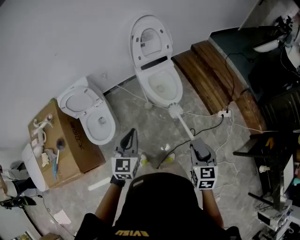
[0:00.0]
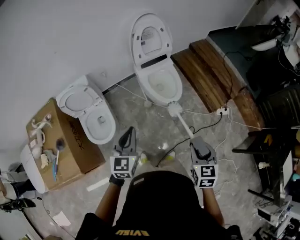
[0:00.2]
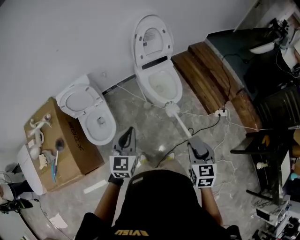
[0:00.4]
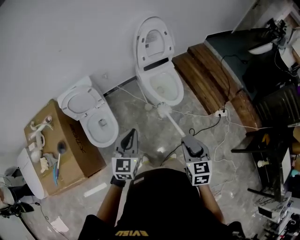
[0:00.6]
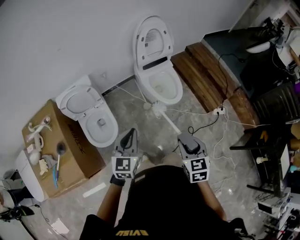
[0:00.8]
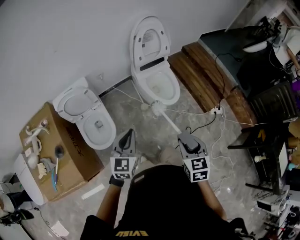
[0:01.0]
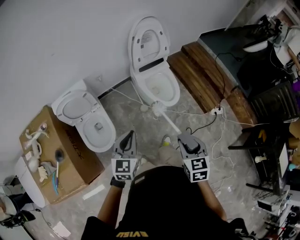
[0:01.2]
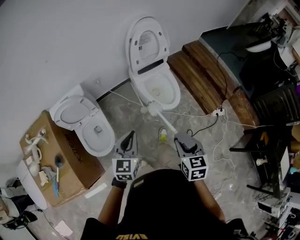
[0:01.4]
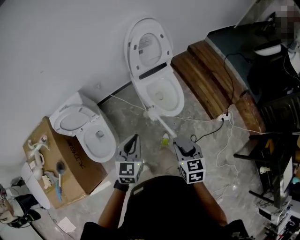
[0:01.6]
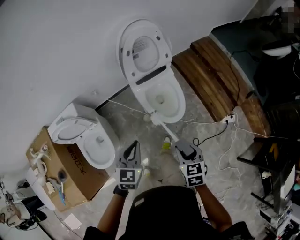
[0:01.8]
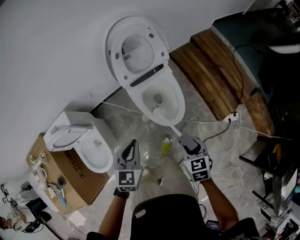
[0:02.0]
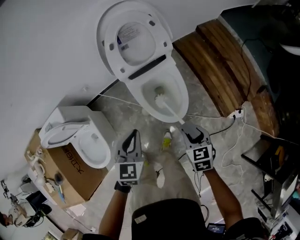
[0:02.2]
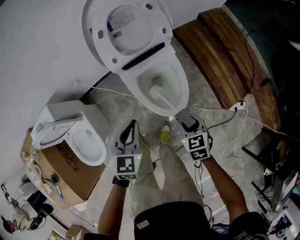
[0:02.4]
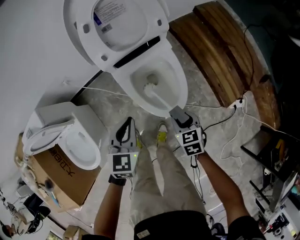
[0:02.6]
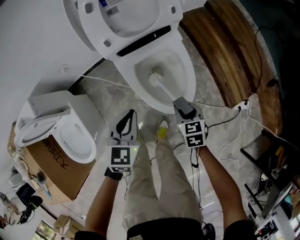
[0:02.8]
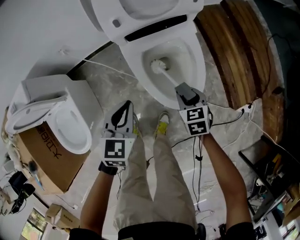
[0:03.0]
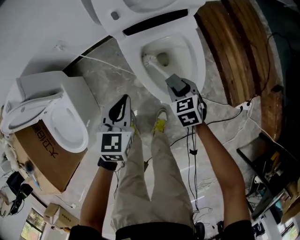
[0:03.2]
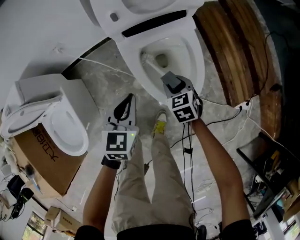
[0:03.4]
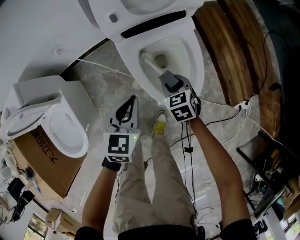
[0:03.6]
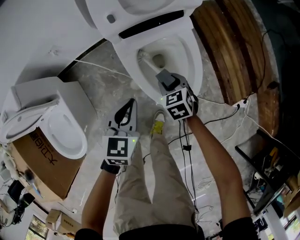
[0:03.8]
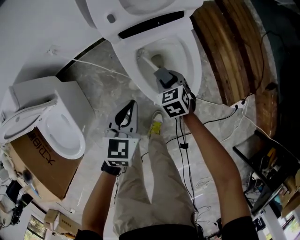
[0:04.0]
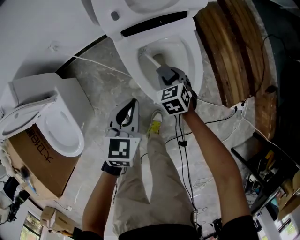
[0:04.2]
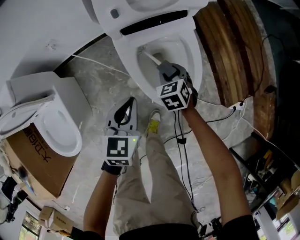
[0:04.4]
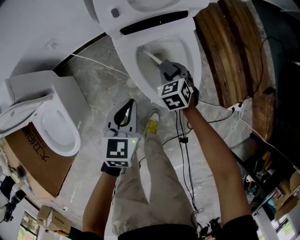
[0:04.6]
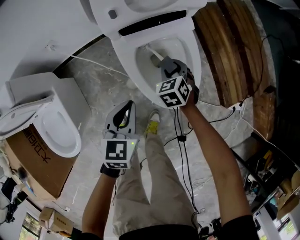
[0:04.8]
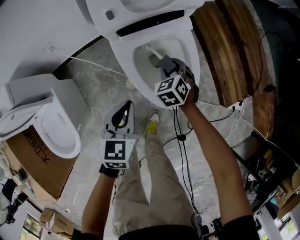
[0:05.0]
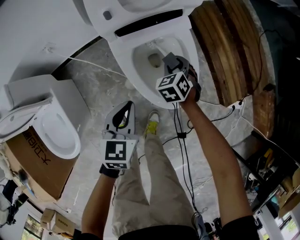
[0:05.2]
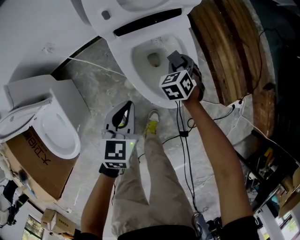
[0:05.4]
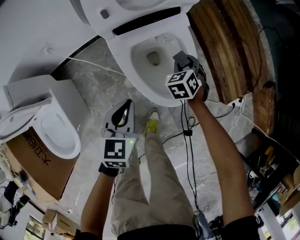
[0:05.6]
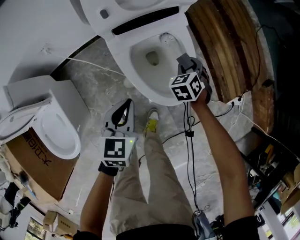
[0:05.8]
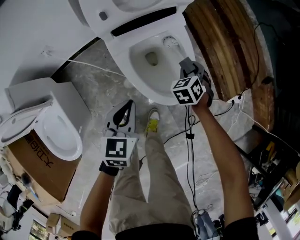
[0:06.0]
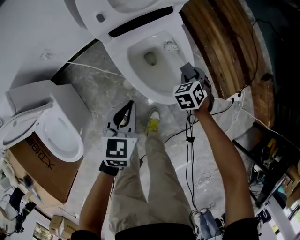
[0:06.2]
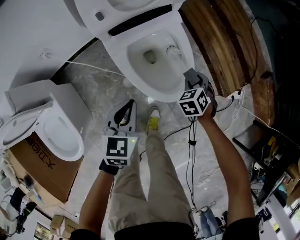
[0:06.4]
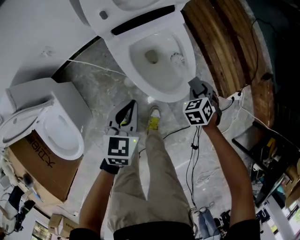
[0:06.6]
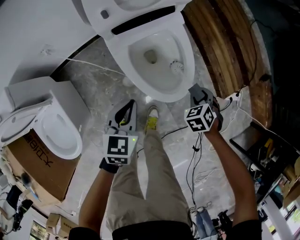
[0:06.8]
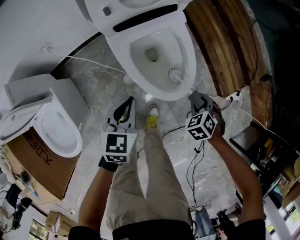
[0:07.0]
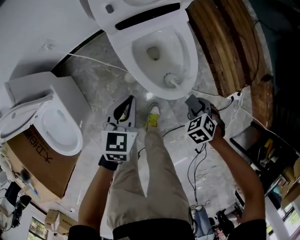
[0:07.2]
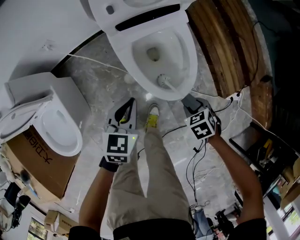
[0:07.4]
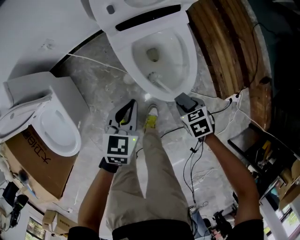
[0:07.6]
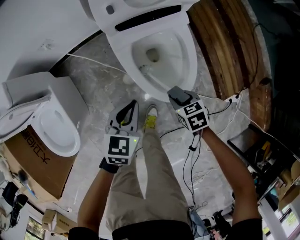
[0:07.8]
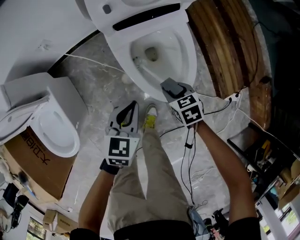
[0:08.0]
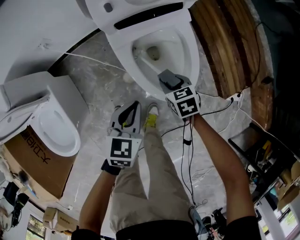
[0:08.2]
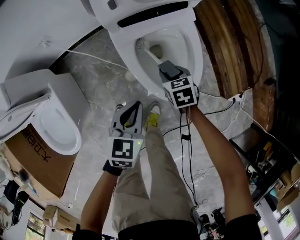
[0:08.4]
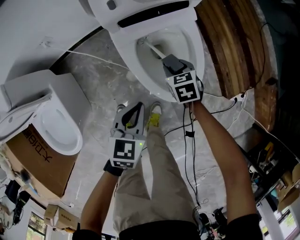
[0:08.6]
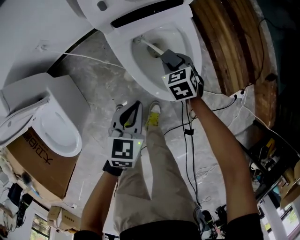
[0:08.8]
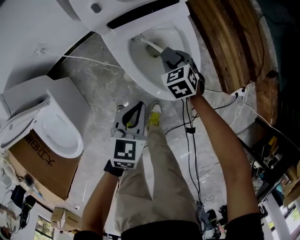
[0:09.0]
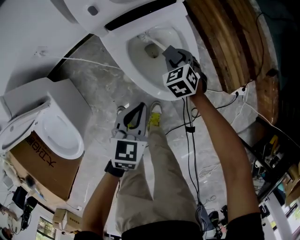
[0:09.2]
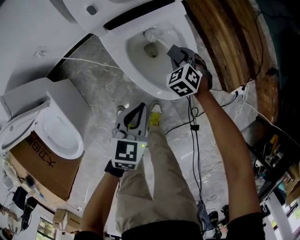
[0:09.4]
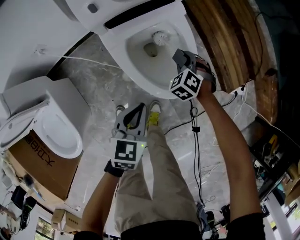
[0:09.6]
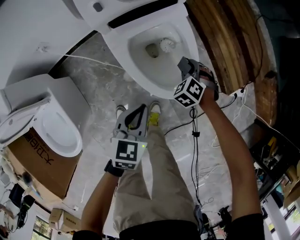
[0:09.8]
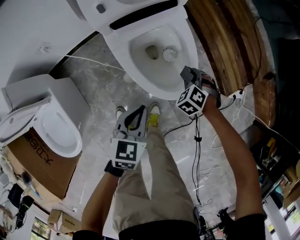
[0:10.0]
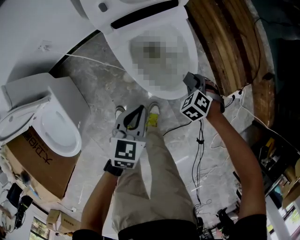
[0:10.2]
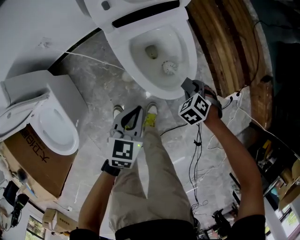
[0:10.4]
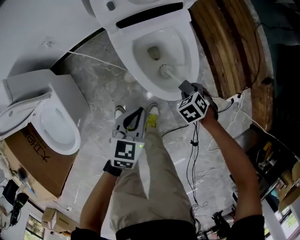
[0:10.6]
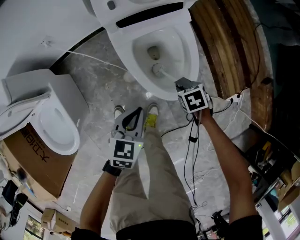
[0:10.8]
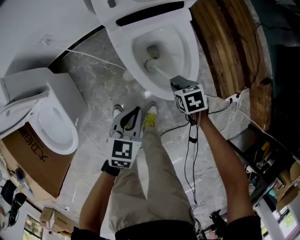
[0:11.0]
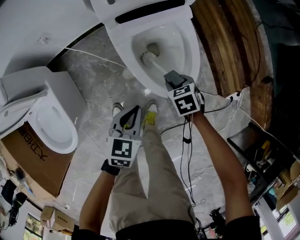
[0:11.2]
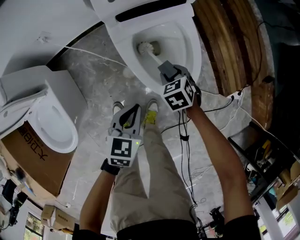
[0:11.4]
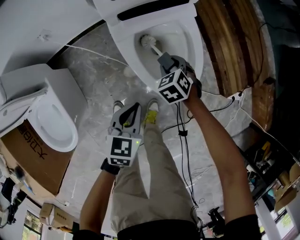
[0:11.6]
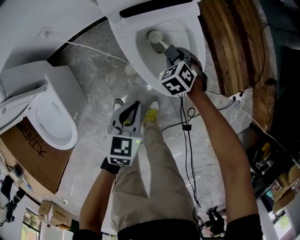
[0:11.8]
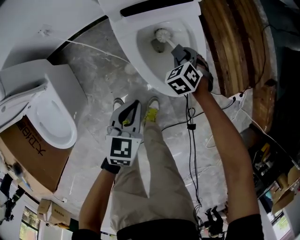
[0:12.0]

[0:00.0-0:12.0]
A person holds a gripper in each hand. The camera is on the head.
0.0 to 1.6 s: The right gripper travels forward and to the left by approximately 20 cm. Meanwhile the left gripper travels forward and downward by approximately 15 cm.
1.6 to 3.0 s: Both grippers travel together downward and forward, roughly 50 cm. The right gripper changes its angle by some 20 degrees.
3.0 to 4.4 s: The right gripper moves forward and to the left, roughly 10 cm.
4.4 to 6.0 s: The right gripper travels to the right by about 10 cm, and turns by about 20 degrees.
6.0 to 7.6 s: The right gripper moves some 15 cm, and turns by roughly 30 degrees.
7.6 to 9.0 s: The right gripper shifts by approximately 20 cm, and rotates some 20 degrees.
9.0 to 10.4 s: The right gripper ends up roughly 15 cm from where it was, and turns by some 30 degrees.
10.4 to 12.0 s: The right gripper ends up roughly 15 cm from where it was.

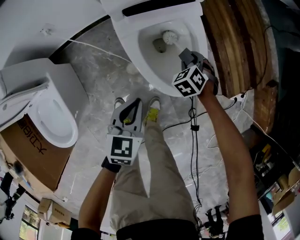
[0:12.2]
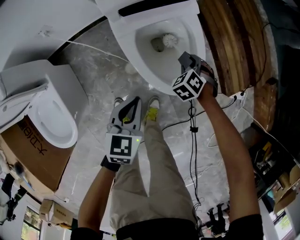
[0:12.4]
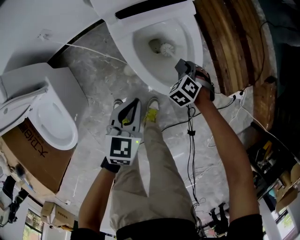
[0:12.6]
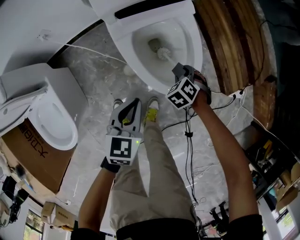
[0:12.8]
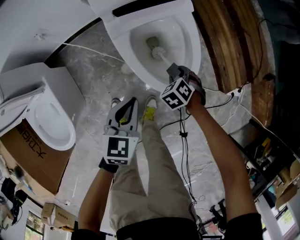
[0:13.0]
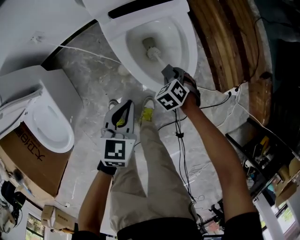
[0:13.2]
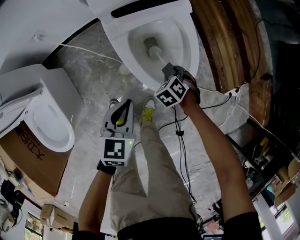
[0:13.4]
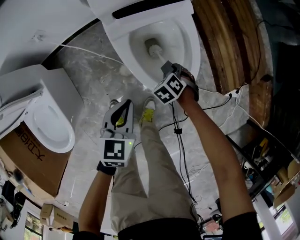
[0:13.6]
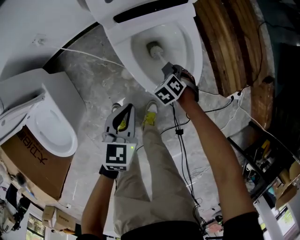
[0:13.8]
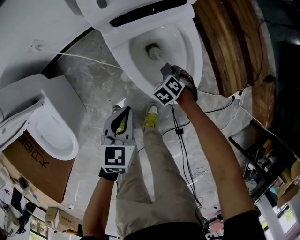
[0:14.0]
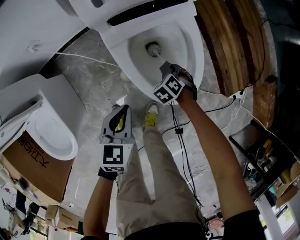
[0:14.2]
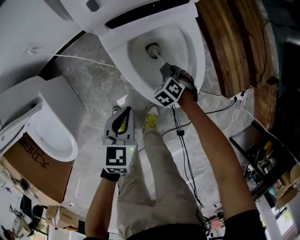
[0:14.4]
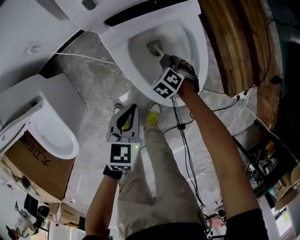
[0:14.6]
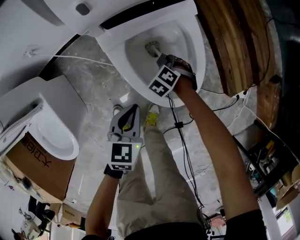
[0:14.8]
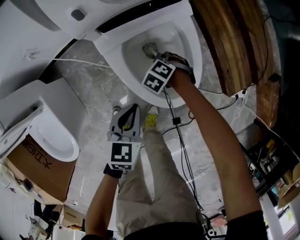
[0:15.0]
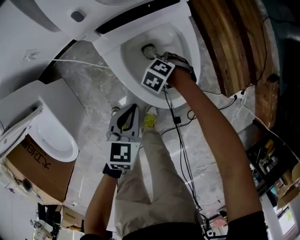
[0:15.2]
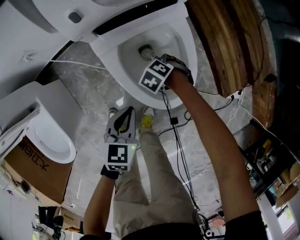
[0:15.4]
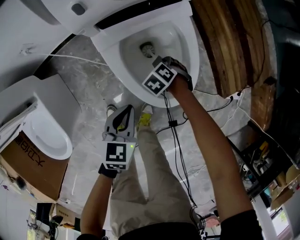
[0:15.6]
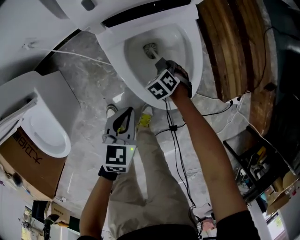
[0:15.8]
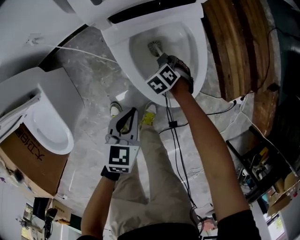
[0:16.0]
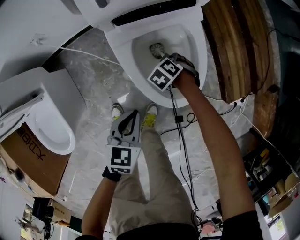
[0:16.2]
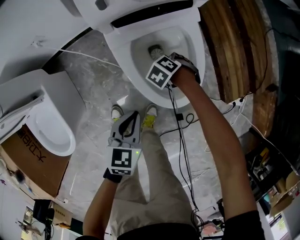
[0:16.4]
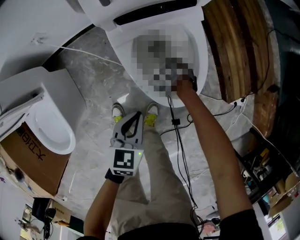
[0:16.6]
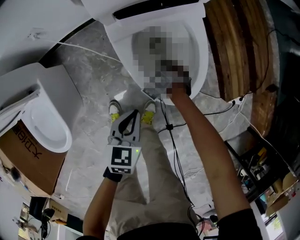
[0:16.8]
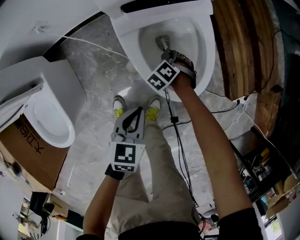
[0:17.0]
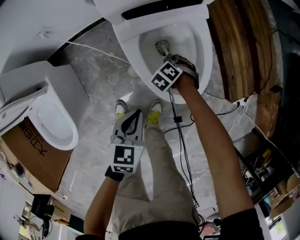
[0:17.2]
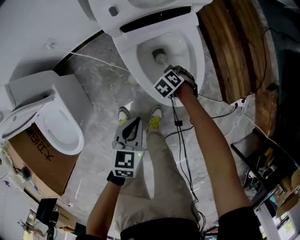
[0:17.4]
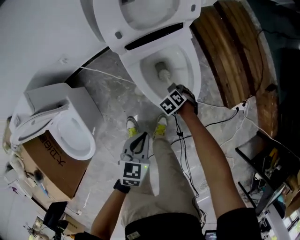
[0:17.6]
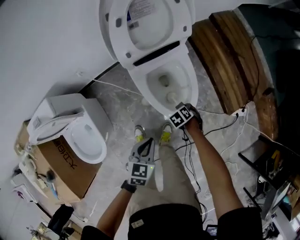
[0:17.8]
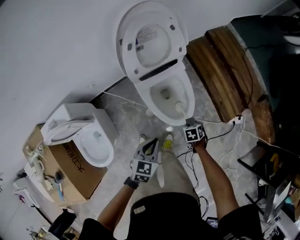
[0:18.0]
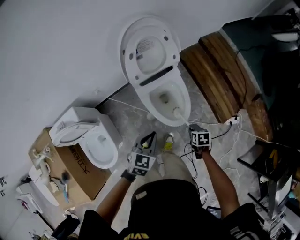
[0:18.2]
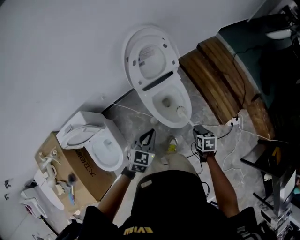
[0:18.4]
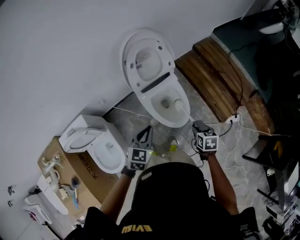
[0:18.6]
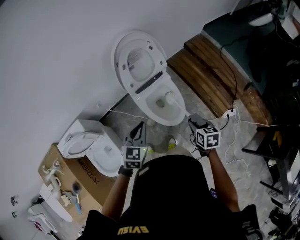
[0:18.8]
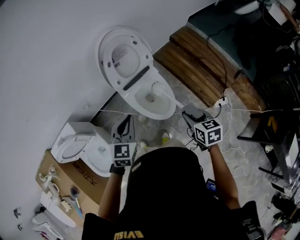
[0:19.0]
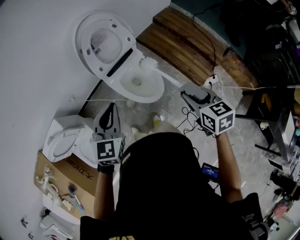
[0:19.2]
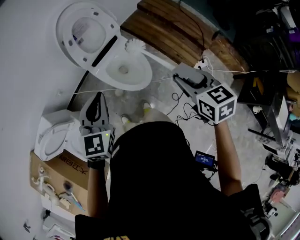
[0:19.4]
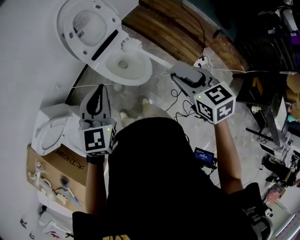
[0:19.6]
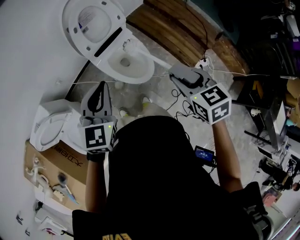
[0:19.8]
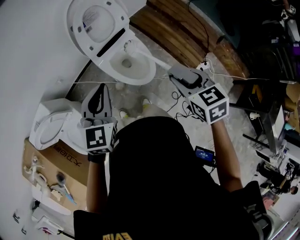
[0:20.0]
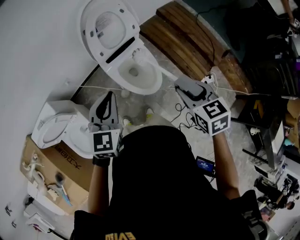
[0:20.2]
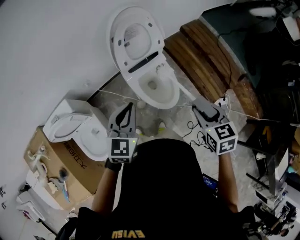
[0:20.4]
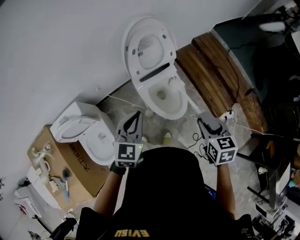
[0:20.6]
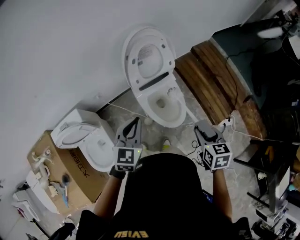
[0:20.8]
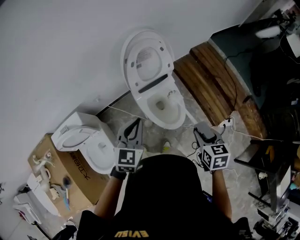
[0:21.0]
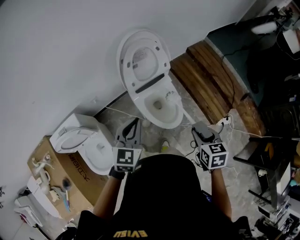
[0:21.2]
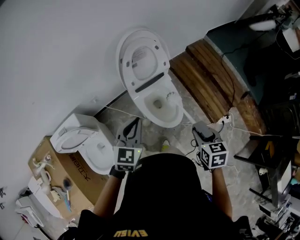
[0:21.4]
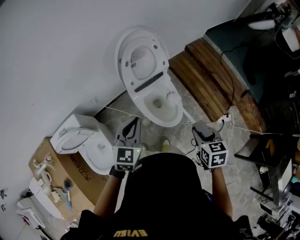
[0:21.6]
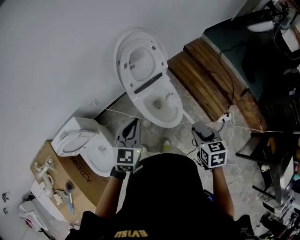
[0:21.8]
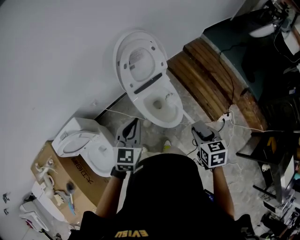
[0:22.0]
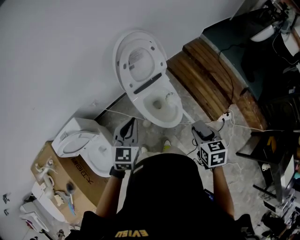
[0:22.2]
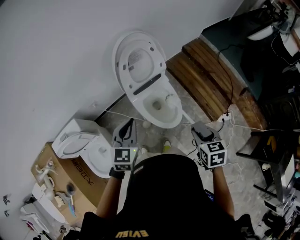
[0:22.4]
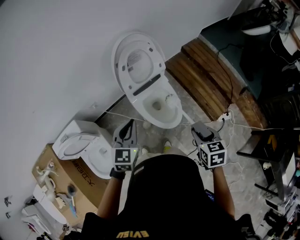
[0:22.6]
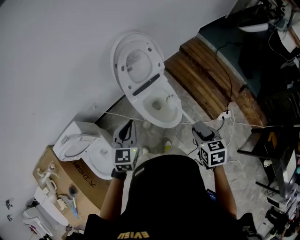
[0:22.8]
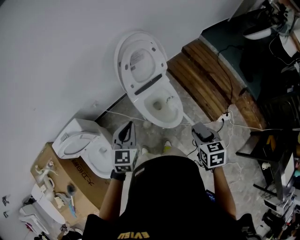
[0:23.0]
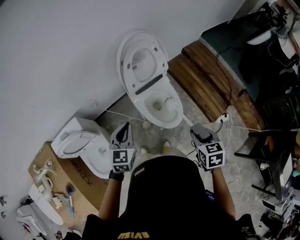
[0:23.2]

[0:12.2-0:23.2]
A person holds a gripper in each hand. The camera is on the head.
12.2 to 13.8 s: The right gripper is displaced downward by approximately 5 cm.
13.8 to 15.4 s: The right gripper changes place by approximately 5 cm. Meanwhile the left gripper changes place by approximately 5 cm.
15.4 to 17.0 s: The left gripper shifts by about 5 cm.
17.0 to 18.4 s: The grippers both shift upward by about 50 cm. The right gripper twists about 70 degrees clockwise, seen from behind. The left gripper swivels some 30 degrees.
18.4 to 20.0 s: The left gripper goes some 10 cm upward. The right gripper travels upward by roughly 20 cm, and swivels roughly 30 degrees.
20.0 to 21.6 s: The grippers make only small movements.
21.6 to 23.2 s: The right gripper moves roughly 5 cm; the left gripper is displaced to the left by approximately 10 cm.

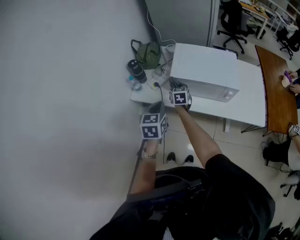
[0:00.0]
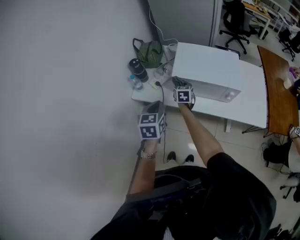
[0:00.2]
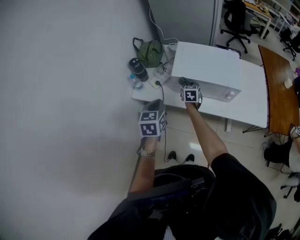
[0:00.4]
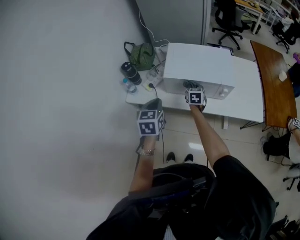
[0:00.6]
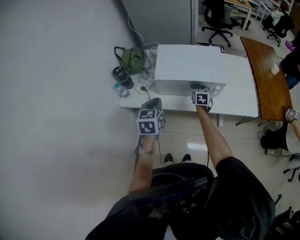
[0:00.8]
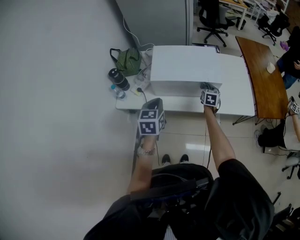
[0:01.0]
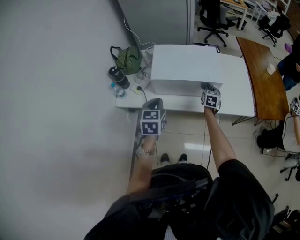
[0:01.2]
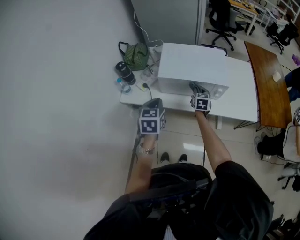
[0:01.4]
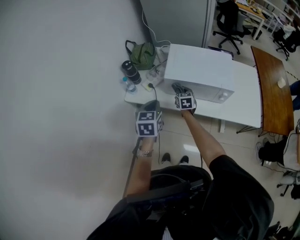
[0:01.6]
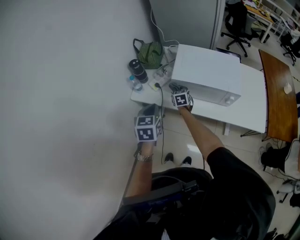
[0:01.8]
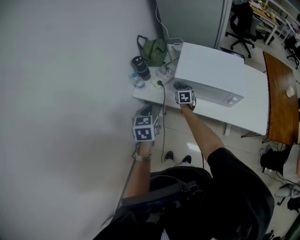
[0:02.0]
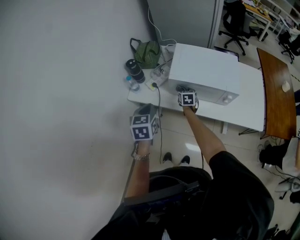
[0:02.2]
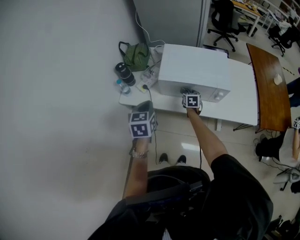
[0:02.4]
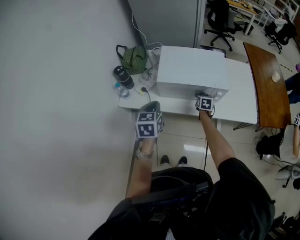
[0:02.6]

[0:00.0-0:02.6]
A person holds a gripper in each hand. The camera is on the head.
0.0 to 1.2 s: The left gripper moves to the right, about 10 cm; the right gripper shifts approximately 35 cm to the right, and rotates about 30 degrees.
1.2 to 2.6 s: The right gripper heads downward, covering some 5 cm, and travels to the left and back again, roughly 30 cm each way; the left gripper goes to the left and returns, some 15 cm each way.
